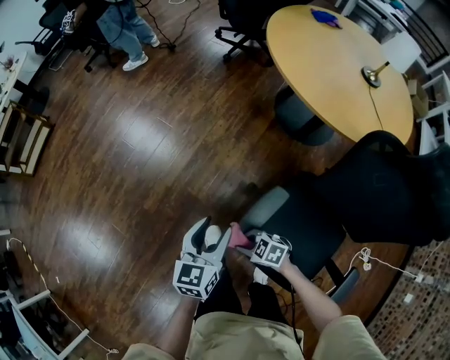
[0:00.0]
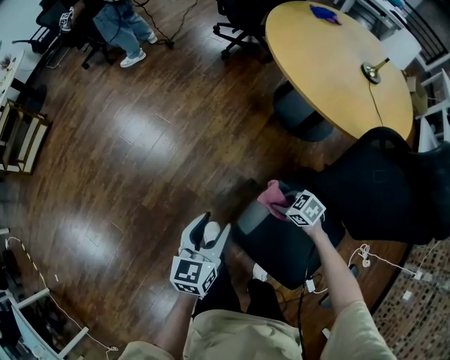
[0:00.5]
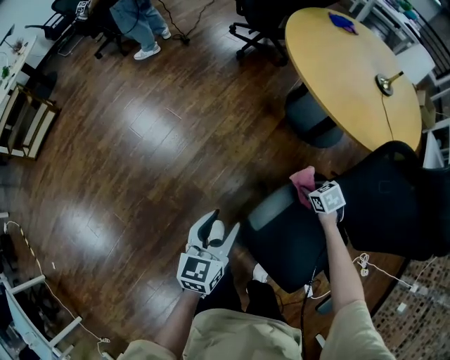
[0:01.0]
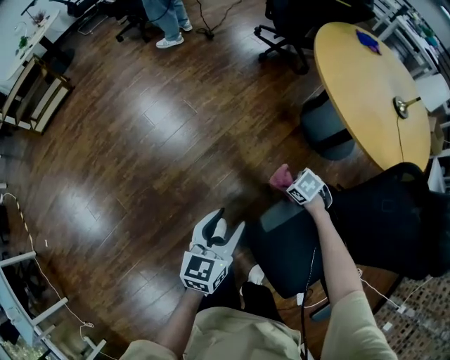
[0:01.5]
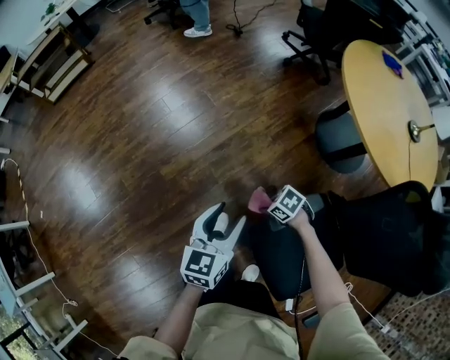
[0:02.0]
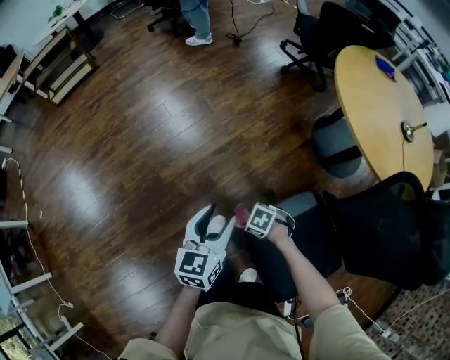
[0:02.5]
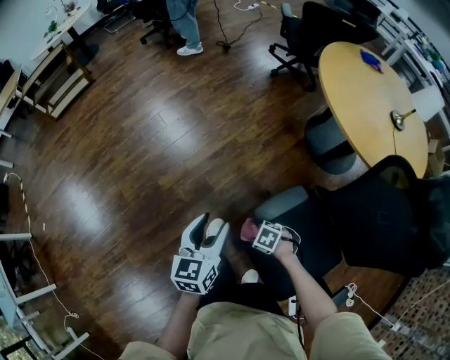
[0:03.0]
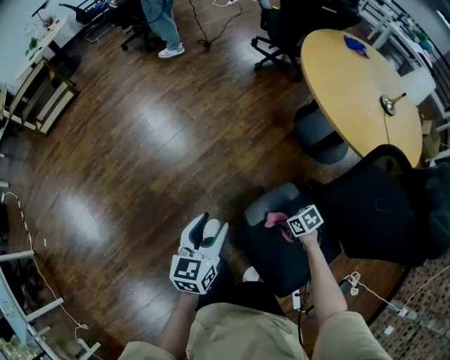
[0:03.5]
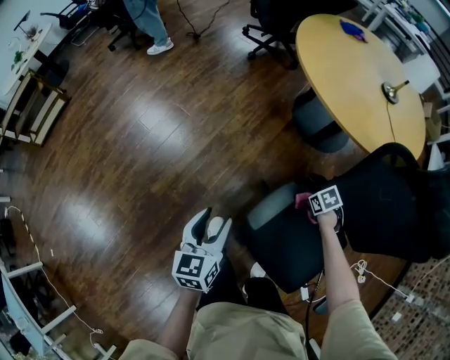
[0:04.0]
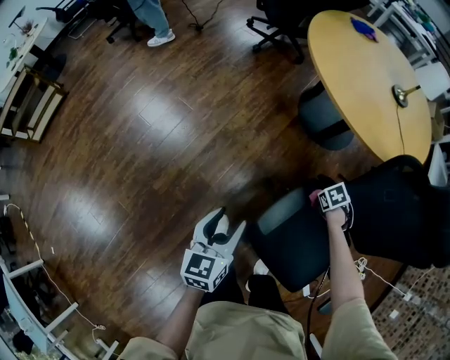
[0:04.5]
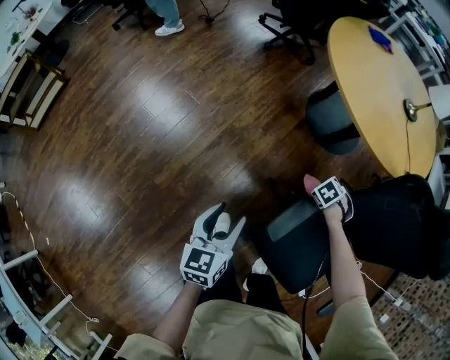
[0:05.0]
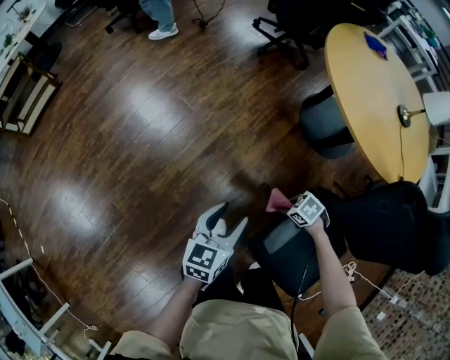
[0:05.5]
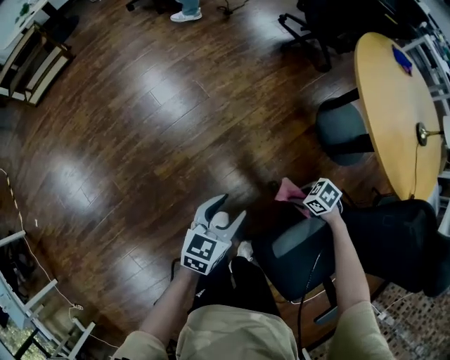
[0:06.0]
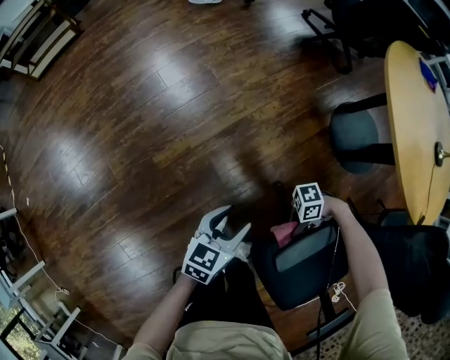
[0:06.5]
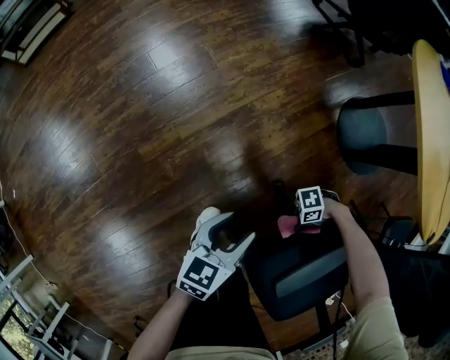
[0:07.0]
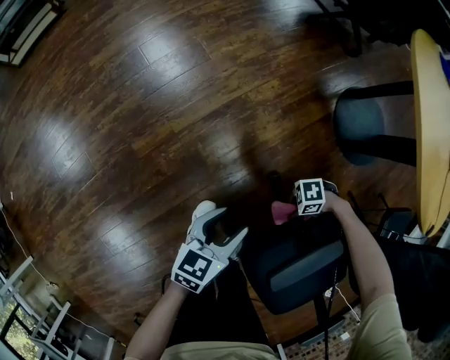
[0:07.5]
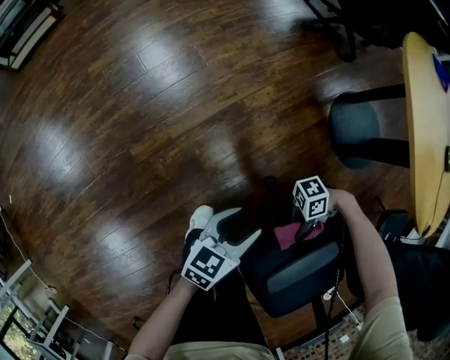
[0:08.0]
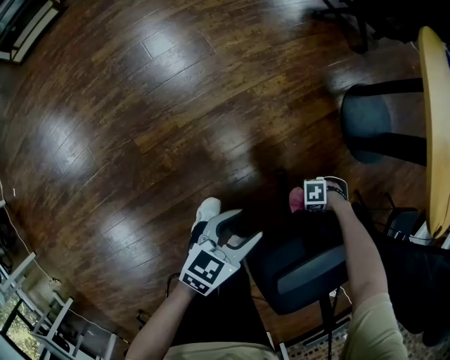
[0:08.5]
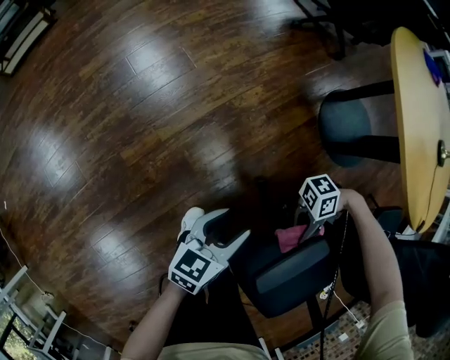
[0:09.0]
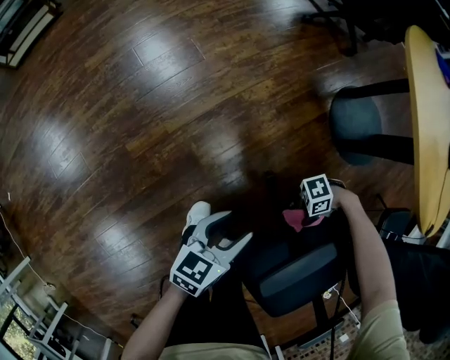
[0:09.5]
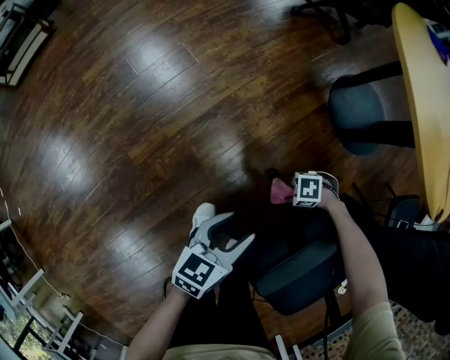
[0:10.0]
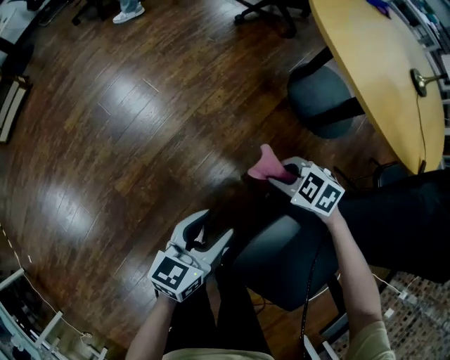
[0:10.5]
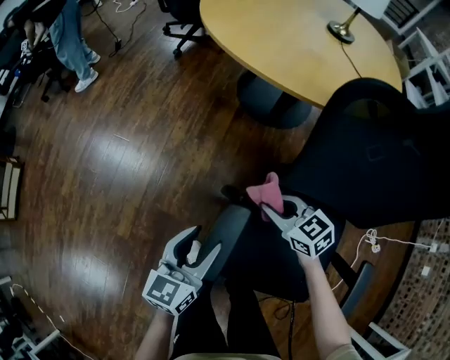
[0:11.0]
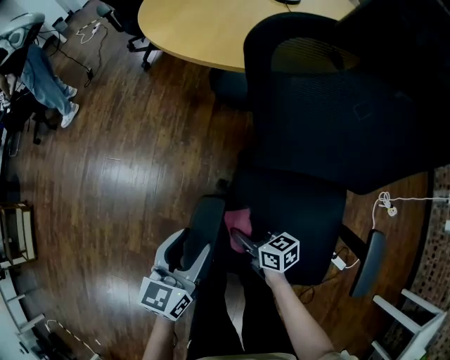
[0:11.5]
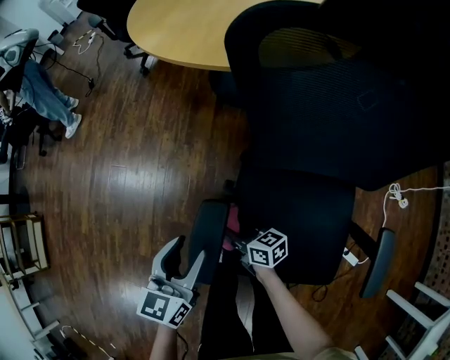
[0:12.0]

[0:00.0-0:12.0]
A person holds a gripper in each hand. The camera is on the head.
0:00.0 to 0:02.0: The left gripper moves about 10 cm. The right gripper swivels approximately 20 degrees.
0:02.0 to 0:04.0: The right gripper shifts by approximately 25 cm, and twists some 40 degrees clockwise, seen from behind.
0:04.0 to 0:06.0: The right gripper moves approximately 20 cm, and swivels some 40 degrees. Meanwhile the left gripper changes place by roughly 15 cm.
0:06.0 to 0:08.0: The right gripper reaches roughly 15 cm downward, then returns, and angles its fingers upward, by some 50 degrees. The left gripper travels downward by some 15 cm.
0:08.0 to 0:10.0: The right gripper moves up and down over about 25 cm, changing direction 2 times, and tips its fingers downward by about 50 degrees.
0:10.0 to 0:12.0: The right gripper moves upward, approximately 15 cm, and tips its fingers upward by some 40 degrees. The left gripper ends up roughly 20 cm from where it was, and changes its angle by about 30 degrees.

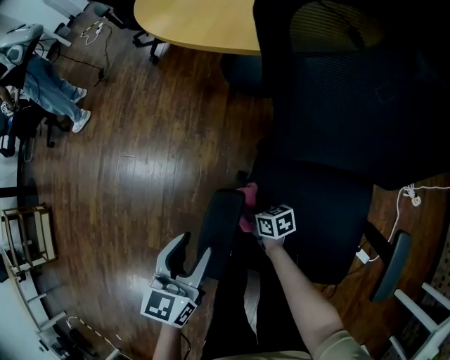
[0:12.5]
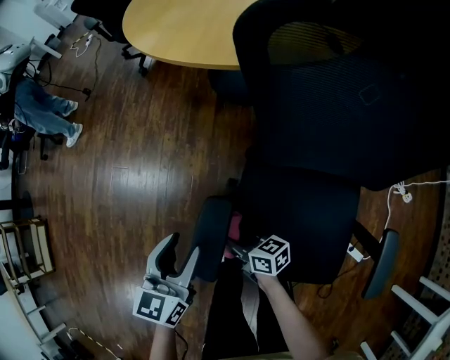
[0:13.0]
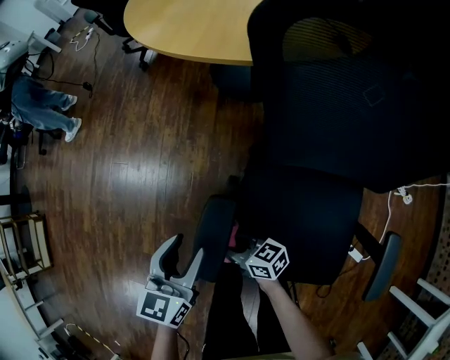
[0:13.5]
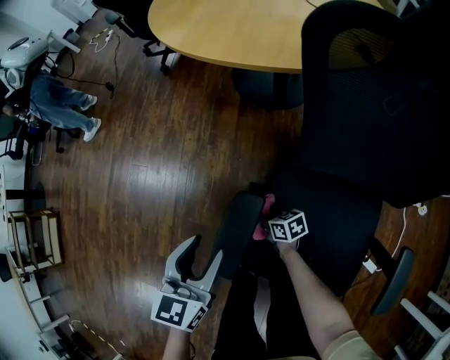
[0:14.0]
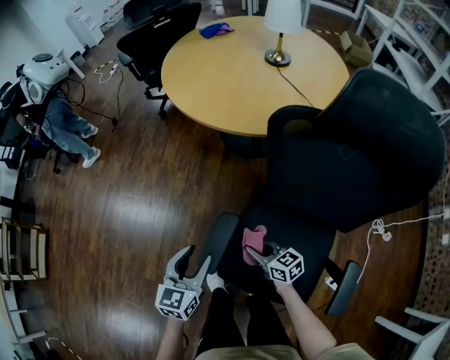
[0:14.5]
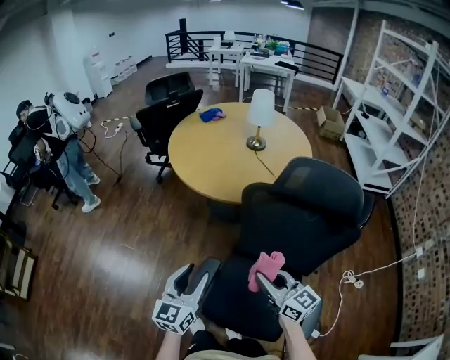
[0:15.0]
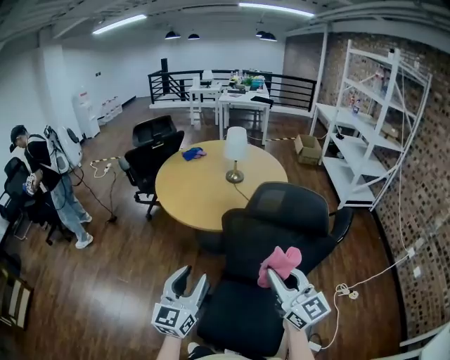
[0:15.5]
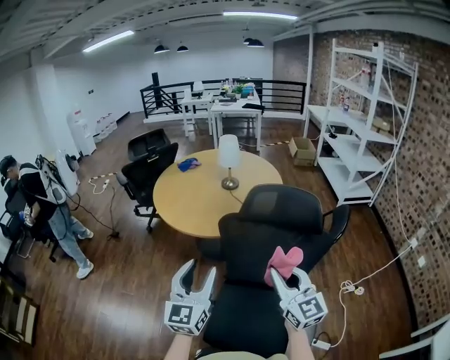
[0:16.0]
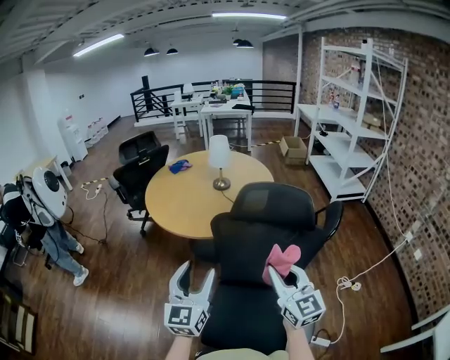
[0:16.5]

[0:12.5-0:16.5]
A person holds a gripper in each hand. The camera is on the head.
0:12.5 to 0:14.5: The right gripper moves up and down over about 20 cm, changing direction 2 times, and turns by roughly 20 degrees. The left gripper shifts roughly 10 cm upward.
0:14.5 to 0:16.5: The grippers both shift upward and to the right by roughly 40 cm. The left gripper points its fingers some 30 degrees further upward, while the right gripper swivels about 60 degrees.

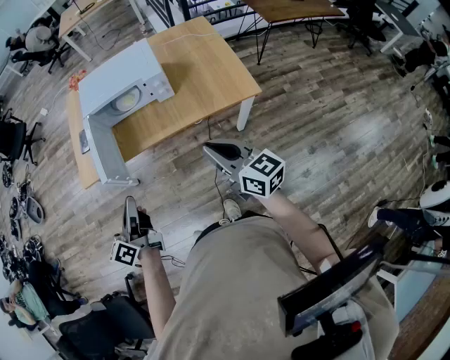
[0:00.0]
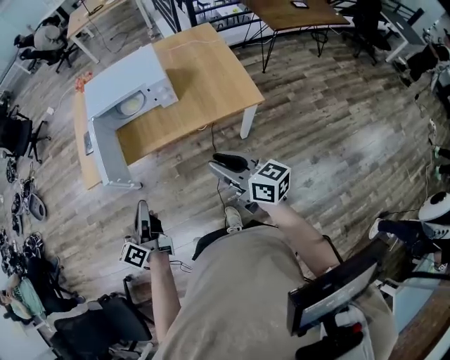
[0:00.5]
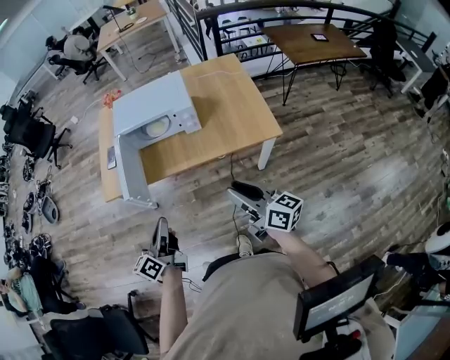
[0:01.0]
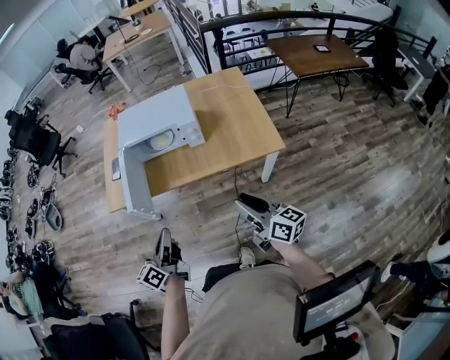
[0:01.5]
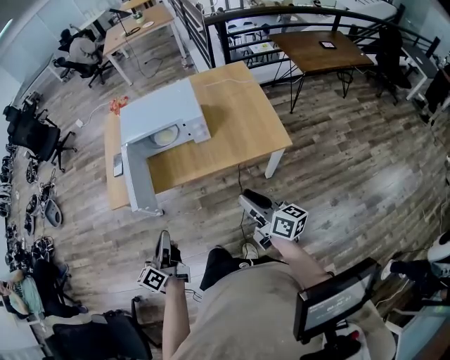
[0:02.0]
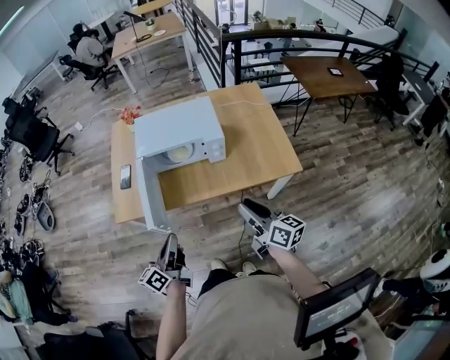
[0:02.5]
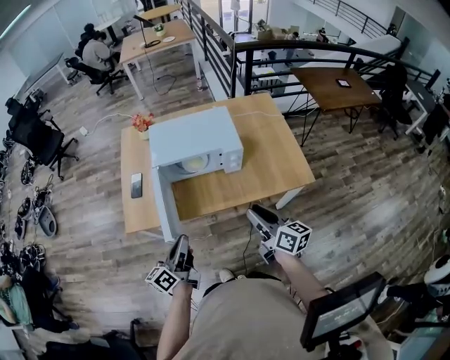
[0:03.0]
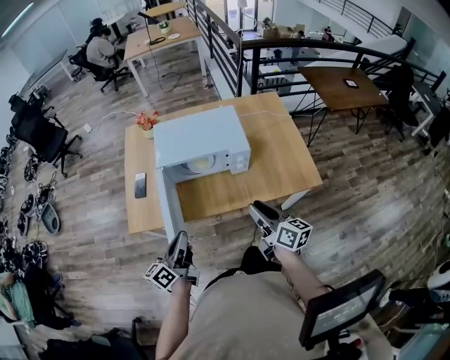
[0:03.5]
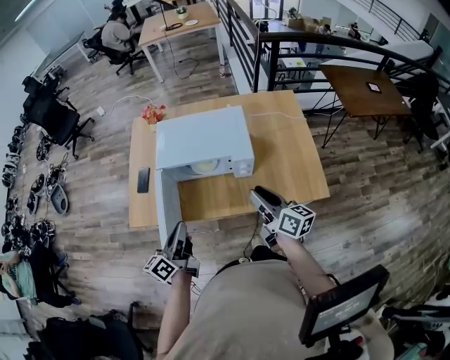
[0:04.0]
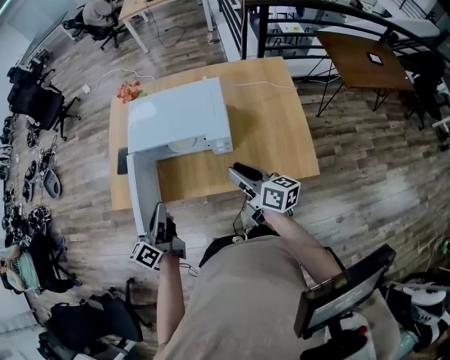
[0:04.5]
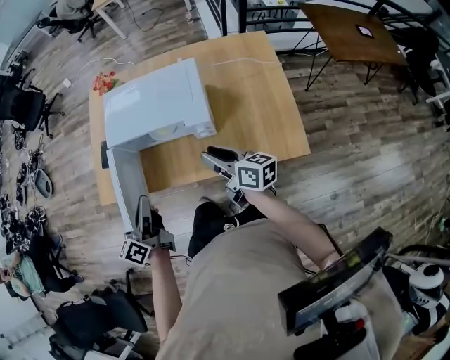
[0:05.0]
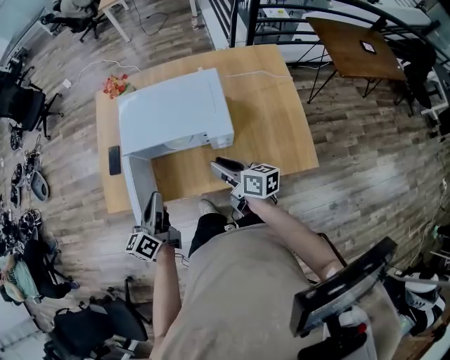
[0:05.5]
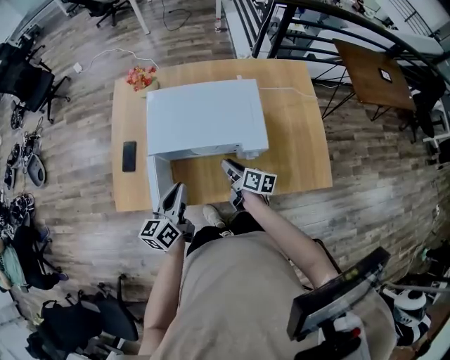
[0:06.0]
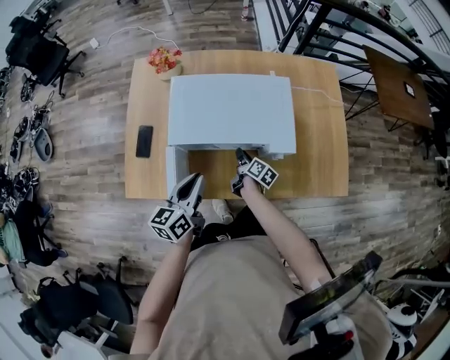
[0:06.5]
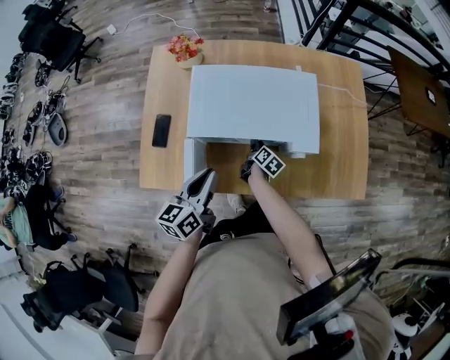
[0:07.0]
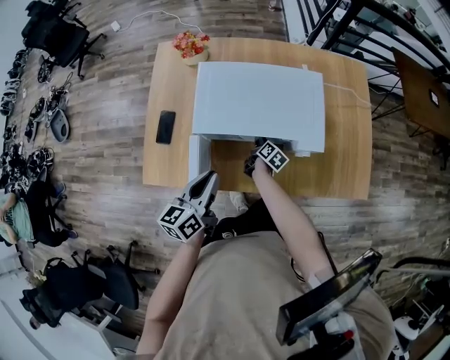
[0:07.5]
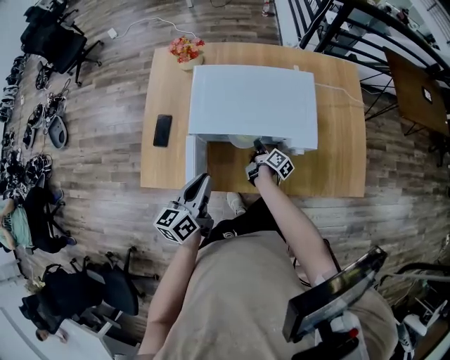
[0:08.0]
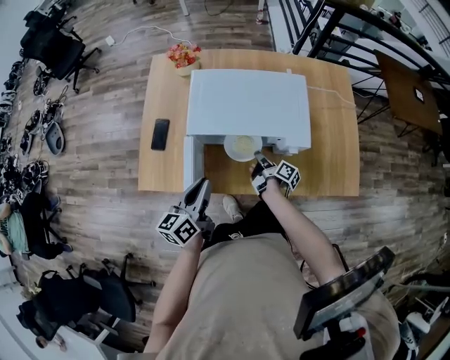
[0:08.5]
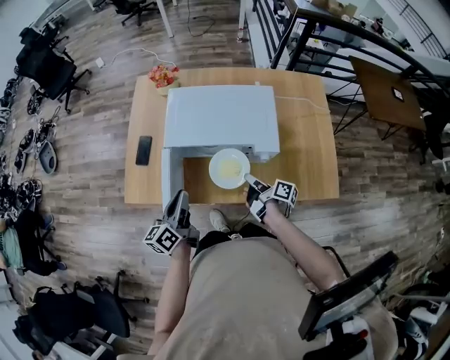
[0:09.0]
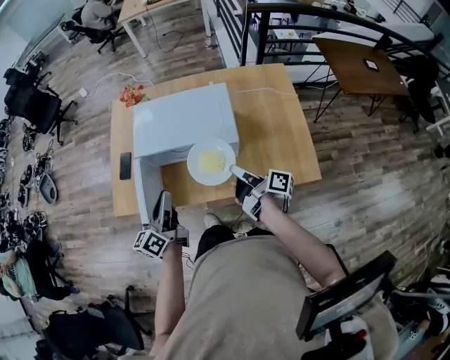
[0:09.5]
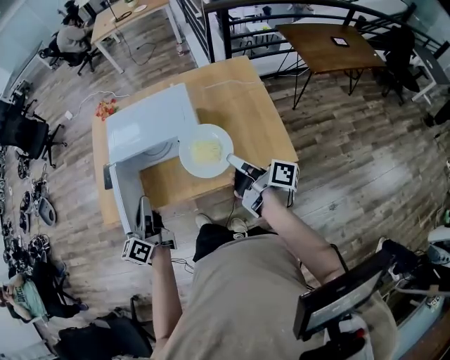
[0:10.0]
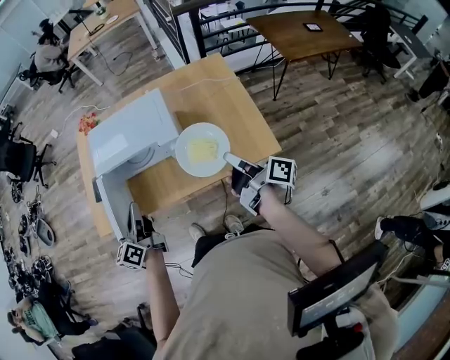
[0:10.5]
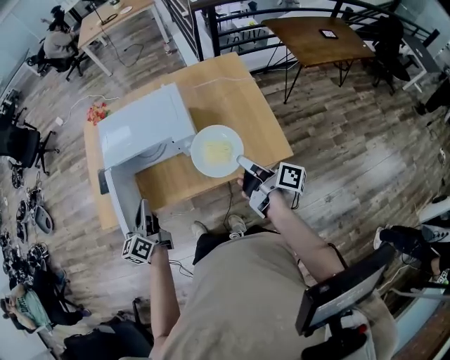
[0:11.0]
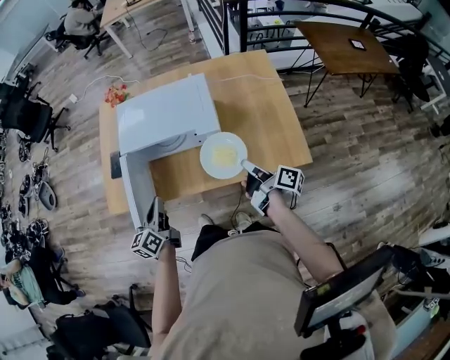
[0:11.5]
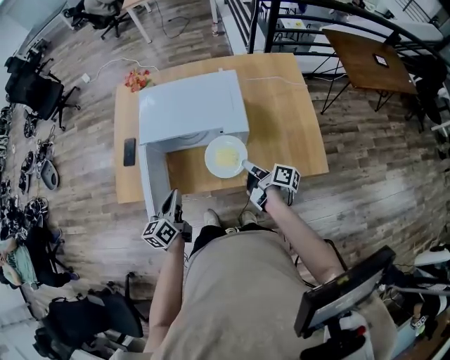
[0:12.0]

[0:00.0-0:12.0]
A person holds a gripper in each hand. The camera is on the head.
0:00.0 to 0:02.0: The right gripper ends up some 5 cm from where it was, and turns by roughly 20 degrees.
0:02.0 to 0:04.0: Both grippers move forward, some 25 cm.
0:04.0 to 0:06.0: The right gripper is displaced downward, forward and to the left by roughly 30 cm, and rotates about 30 degrees, while the left gripper heads forward and downward, covering about 15 cm.
0:06.0 to 0:08.0: The left gripper heads to the left, covering roughly 5 cm, while the right gripper is displaced downward by about 15 cm, and rotates some 30 degrees.
0:08.0 to 0:10.0: The left gripper moves to the right, backward and upward, roughly 20 cm, while the right gripper shifts approximately 50 cm upward, to the right and backward, and rotates approximately 30 degrees.
0:10.0 to 0:12.0: The right gripper goes approximately 20 cm downward, to the left and forward. Meanwhile the left gripper travels downward and to the left by approximately 15 cm.
